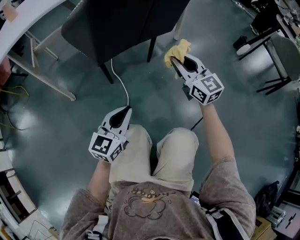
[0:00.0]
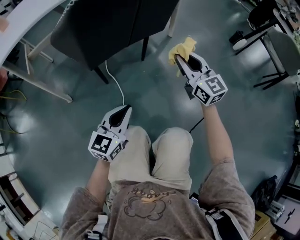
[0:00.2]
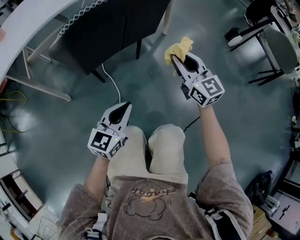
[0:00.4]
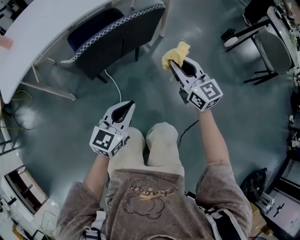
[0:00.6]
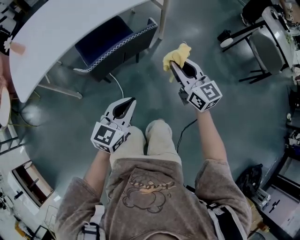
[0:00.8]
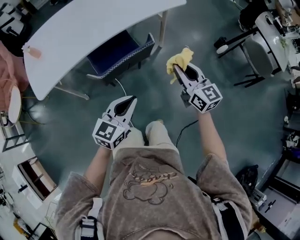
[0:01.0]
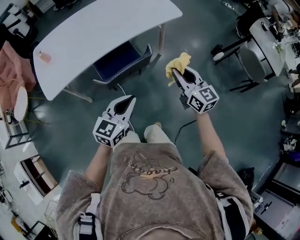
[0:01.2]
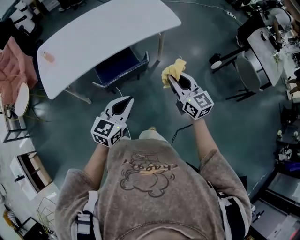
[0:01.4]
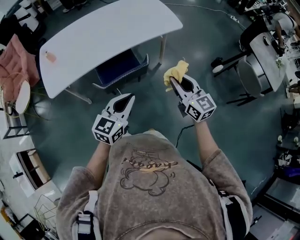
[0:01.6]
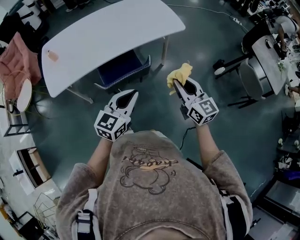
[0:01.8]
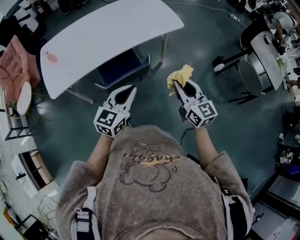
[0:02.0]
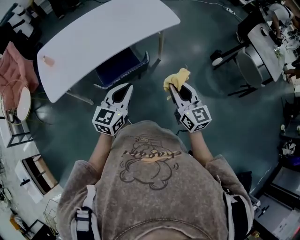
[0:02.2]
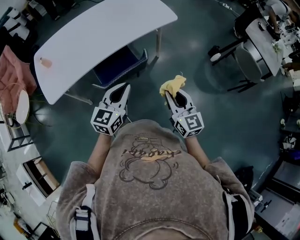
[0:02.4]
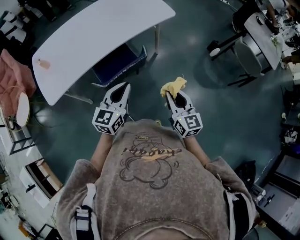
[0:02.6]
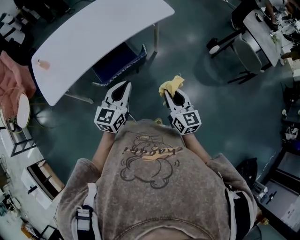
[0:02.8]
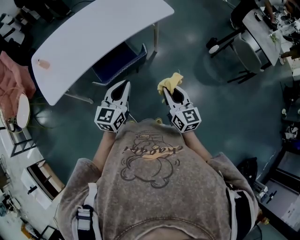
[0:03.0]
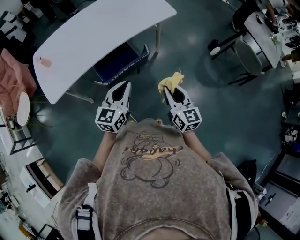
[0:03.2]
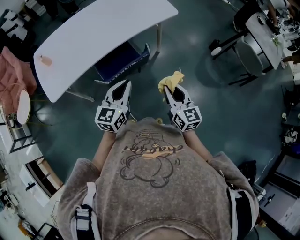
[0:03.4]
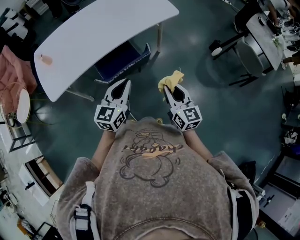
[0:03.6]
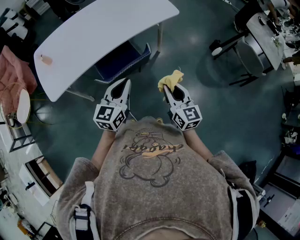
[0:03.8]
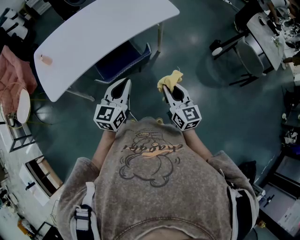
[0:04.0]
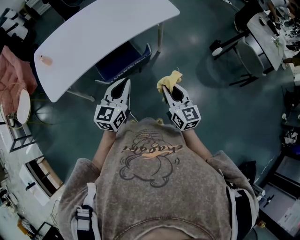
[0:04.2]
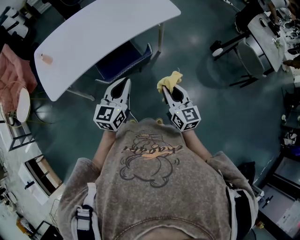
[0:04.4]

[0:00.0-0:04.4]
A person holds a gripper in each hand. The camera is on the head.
0:00.0 to 0:01.4: The two grippers go roughly 50 cm upward.
0:01.4 to 0:03.0: The left gripper goes about 5 cm forward; the right gripper goes roughly 10 cm backward and downward.
0:03.0 to 0:04.4: There are only small adjustments of the grippers.

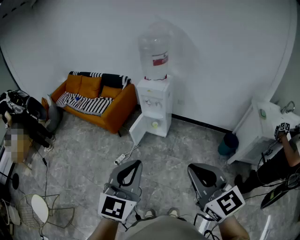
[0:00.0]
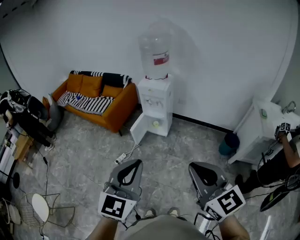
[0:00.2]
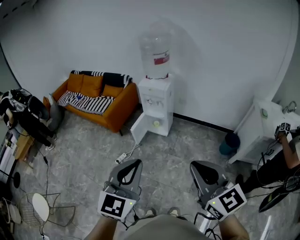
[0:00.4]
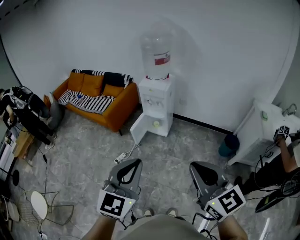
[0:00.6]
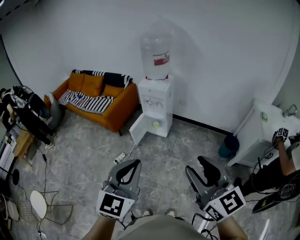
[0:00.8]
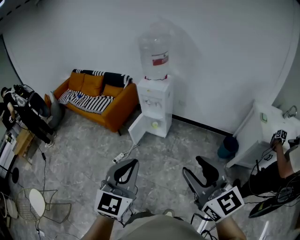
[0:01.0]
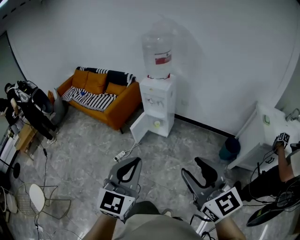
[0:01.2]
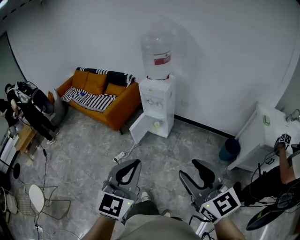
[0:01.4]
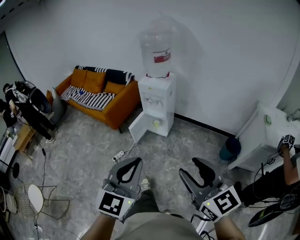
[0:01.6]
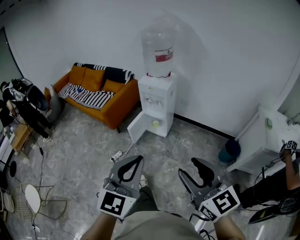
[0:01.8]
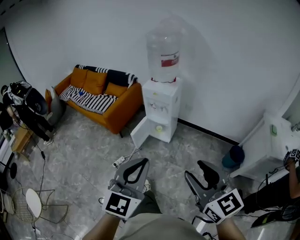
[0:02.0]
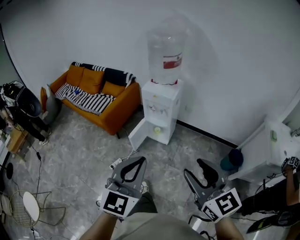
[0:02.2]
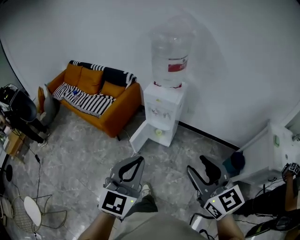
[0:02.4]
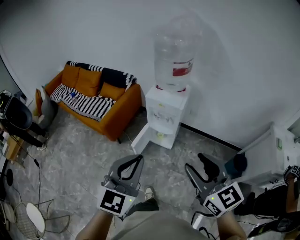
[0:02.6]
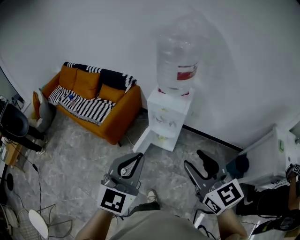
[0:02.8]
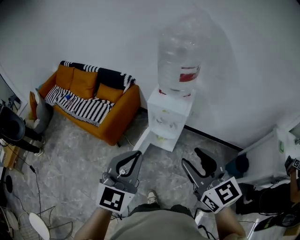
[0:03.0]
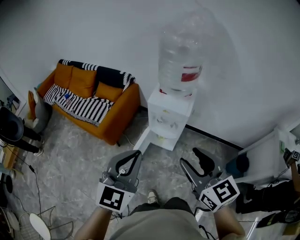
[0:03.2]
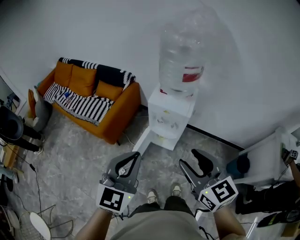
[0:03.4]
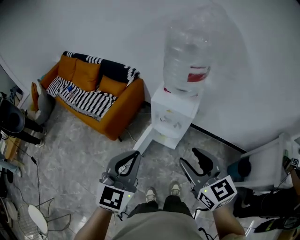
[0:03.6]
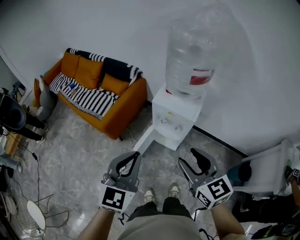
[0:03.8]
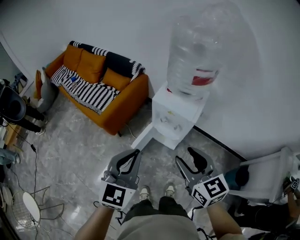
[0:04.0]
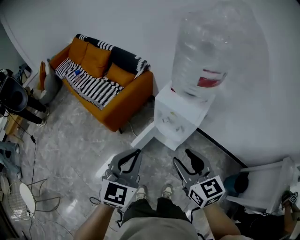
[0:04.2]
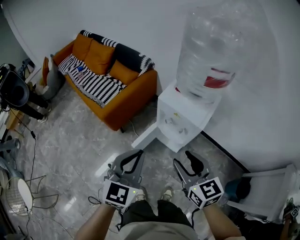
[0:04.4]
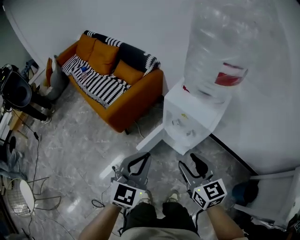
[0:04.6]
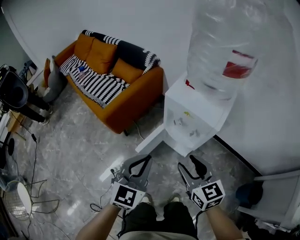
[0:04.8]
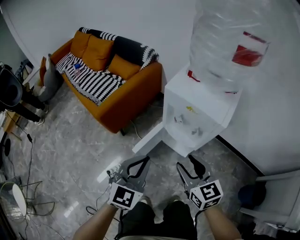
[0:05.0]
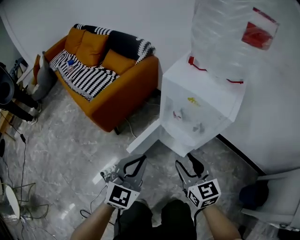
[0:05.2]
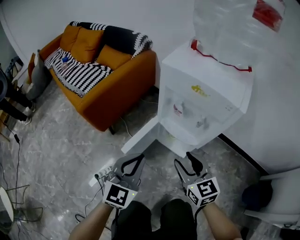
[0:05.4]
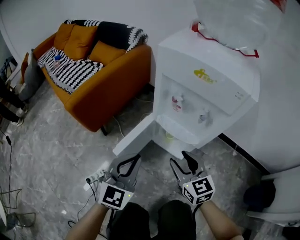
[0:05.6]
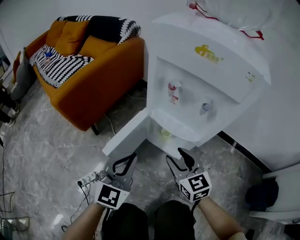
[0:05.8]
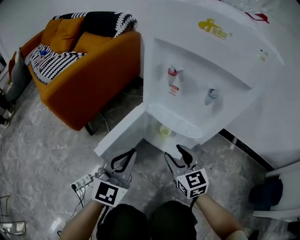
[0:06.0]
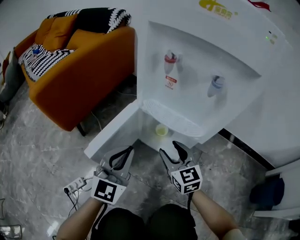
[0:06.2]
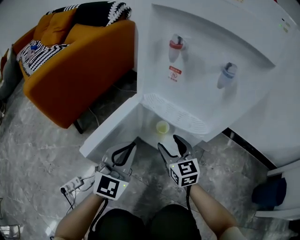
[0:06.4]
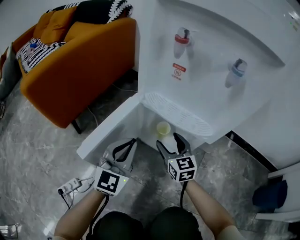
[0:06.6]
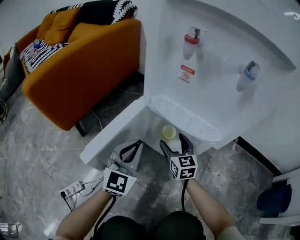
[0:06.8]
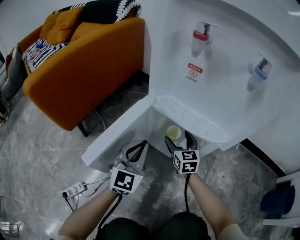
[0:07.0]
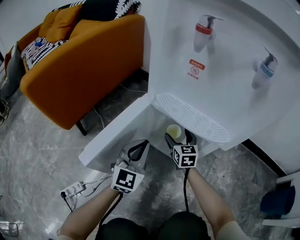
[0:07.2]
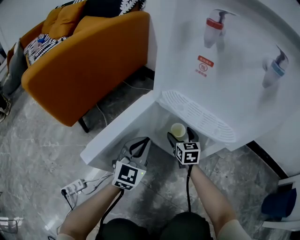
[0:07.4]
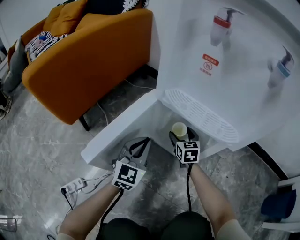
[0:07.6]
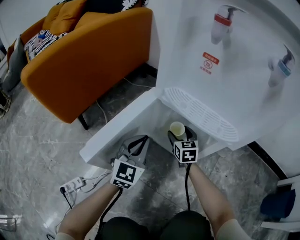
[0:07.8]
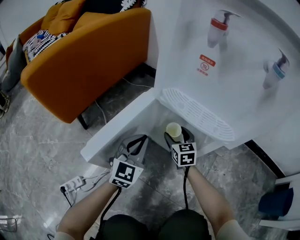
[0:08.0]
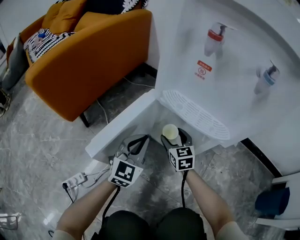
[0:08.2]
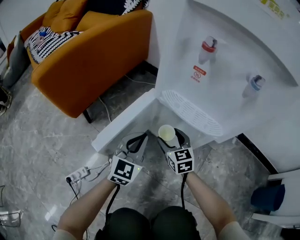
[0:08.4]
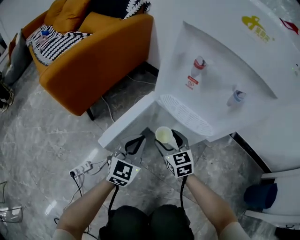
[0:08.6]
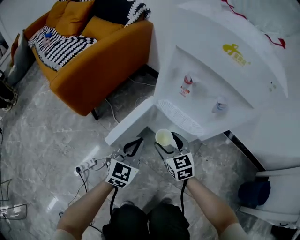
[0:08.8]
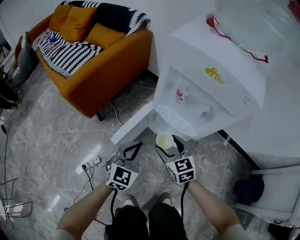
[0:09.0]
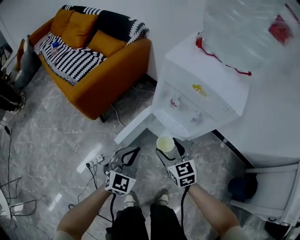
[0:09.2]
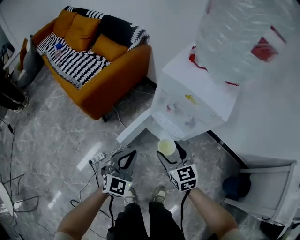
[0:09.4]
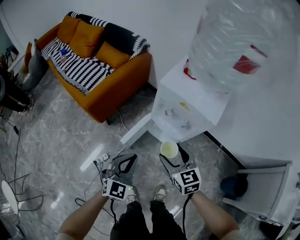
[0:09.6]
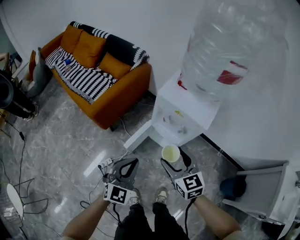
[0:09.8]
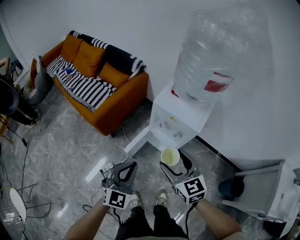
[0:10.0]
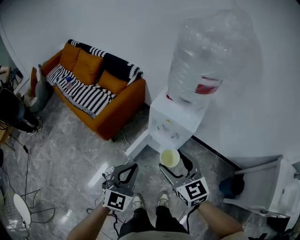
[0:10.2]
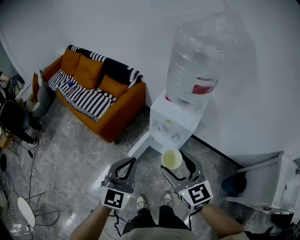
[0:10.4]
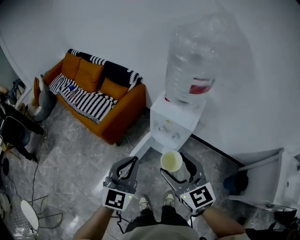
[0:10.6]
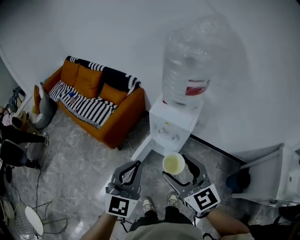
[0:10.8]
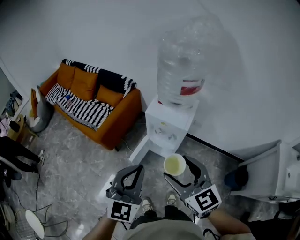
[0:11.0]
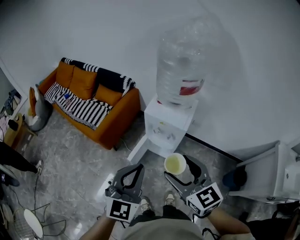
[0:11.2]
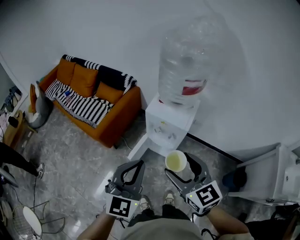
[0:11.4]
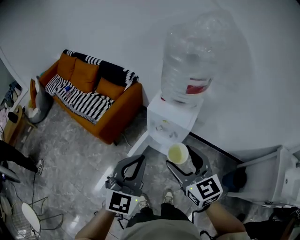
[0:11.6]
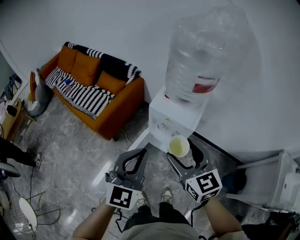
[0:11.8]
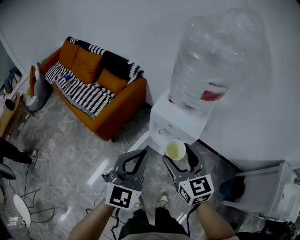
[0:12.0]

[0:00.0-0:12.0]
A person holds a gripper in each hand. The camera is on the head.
0:00.0 to 0:01.6: The grippers both shift to the right by about 5 cm. The right gripper opens its fingers.
0:01.6 to 0:03.0: Both grippers are carried forward, approximately 50 cm.
0:03.0 to 0:04.4: Both grippers move downward and forward, about 20 cm.
0:04.4 to 0:06.0: The two grippers go some 60 cm downward.
0:06.0 to 0:07.6: The two grippers go roughly 30 cm downward and forward. The right gripper opens its fingers.
0:07.6 to 0:09.0: The two grippers go about 35 cm upward and backward.
0:09.0 to 0:10.4: The grippers both shift upward by some 50 cm.
0:10.4 to 0:12.0: Both grippers travel together forward, some 10 cm.

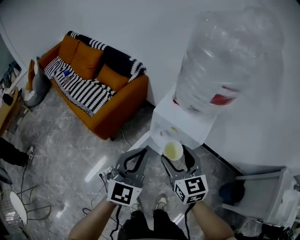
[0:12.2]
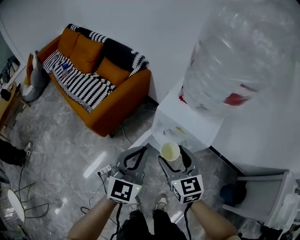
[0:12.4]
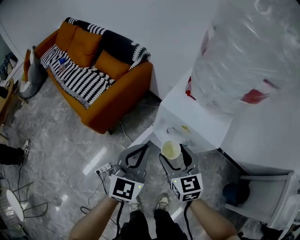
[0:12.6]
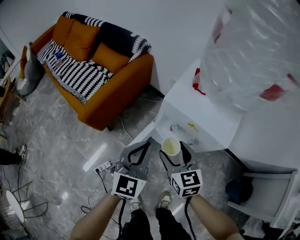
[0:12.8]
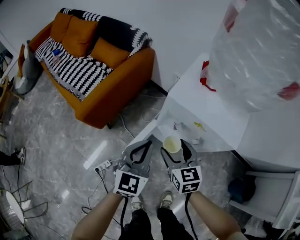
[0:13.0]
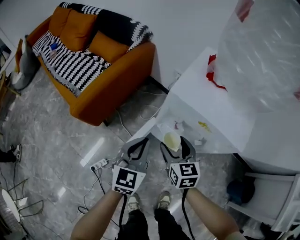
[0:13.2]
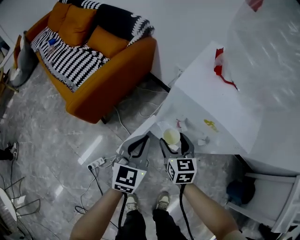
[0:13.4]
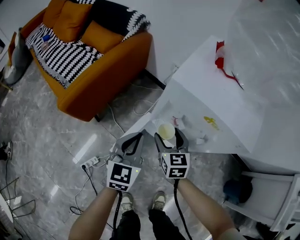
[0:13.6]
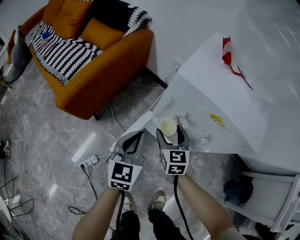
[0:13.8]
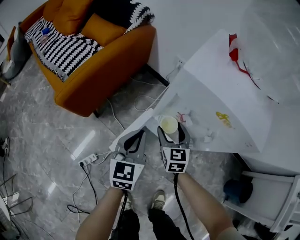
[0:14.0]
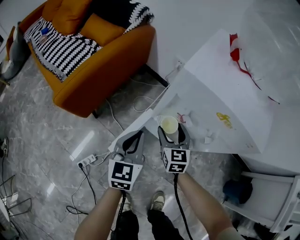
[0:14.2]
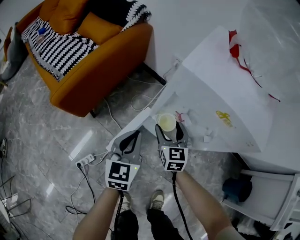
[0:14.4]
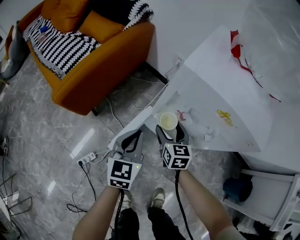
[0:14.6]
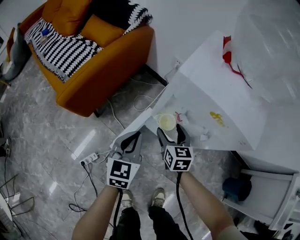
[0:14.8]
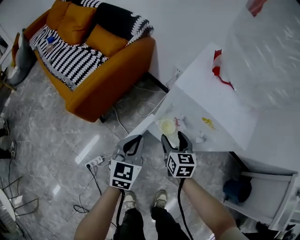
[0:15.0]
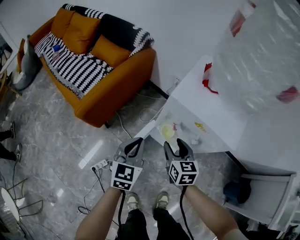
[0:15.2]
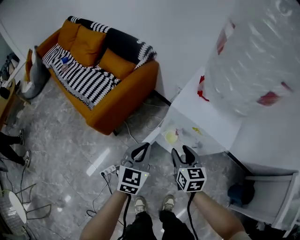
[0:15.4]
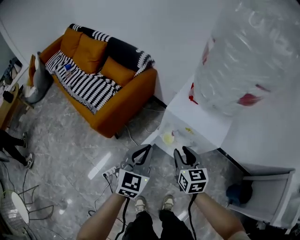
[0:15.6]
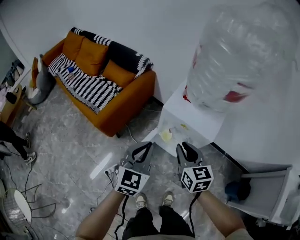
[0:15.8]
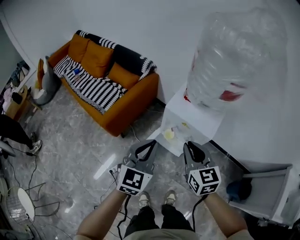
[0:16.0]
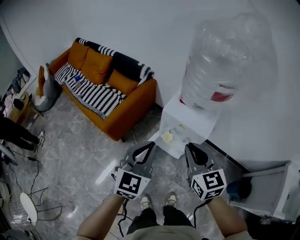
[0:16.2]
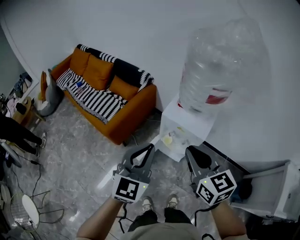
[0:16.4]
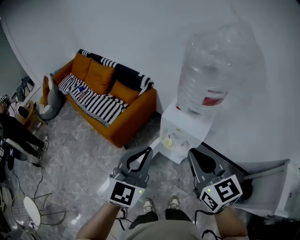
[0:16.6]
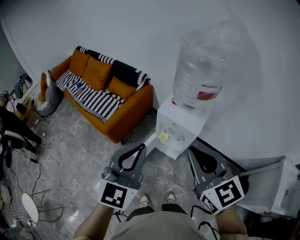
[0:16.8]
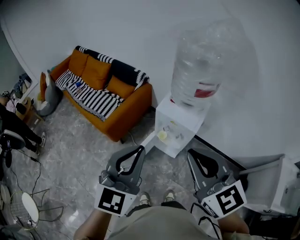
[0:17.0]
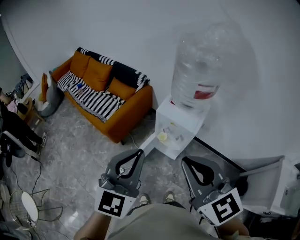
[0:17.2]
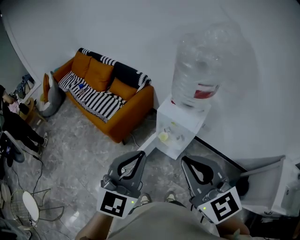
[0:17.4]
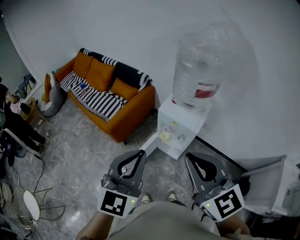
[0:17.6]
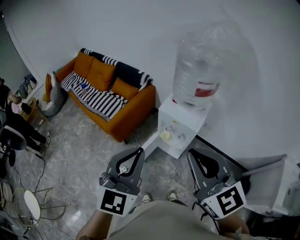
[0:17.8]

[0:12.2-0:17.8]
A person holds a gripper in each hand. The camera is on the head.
0:12.2 to 0:13.6: The grippers both shift downward by roughly 40 cm.
0:13.6 to 0:15.0: The right gripper goes downward and returns, roughly 5 cm each way.
0:15.0 to 0:16.4: Both grippers move upward, roughly 50 cm. The right gripper rotates some 20 degrees, and closes, while the left gripper swivels approximately 20 degrees.
0:16.4 to 0:17.8: The two grippers go roughly 15 cm upward and backward.

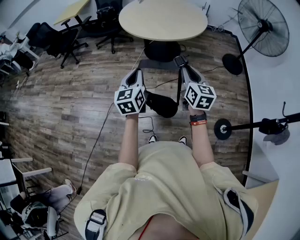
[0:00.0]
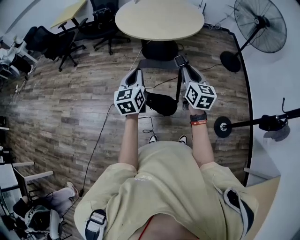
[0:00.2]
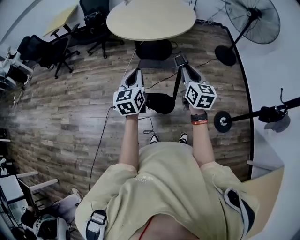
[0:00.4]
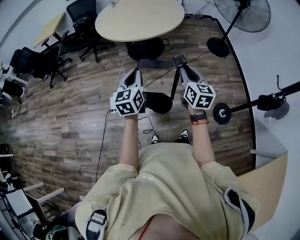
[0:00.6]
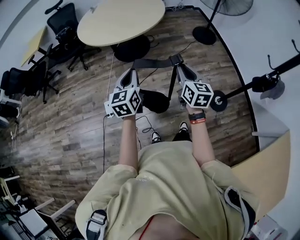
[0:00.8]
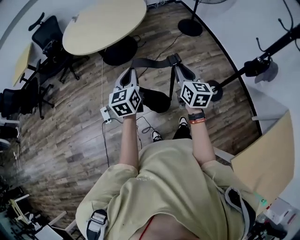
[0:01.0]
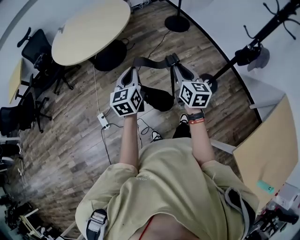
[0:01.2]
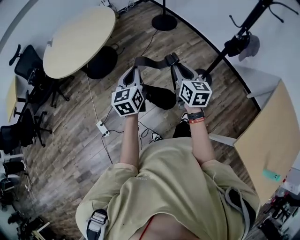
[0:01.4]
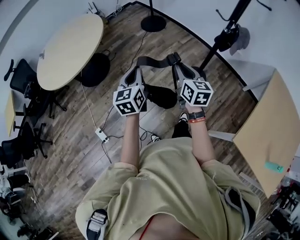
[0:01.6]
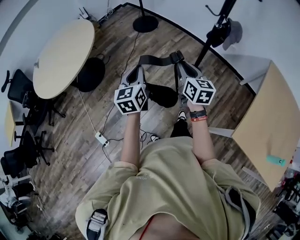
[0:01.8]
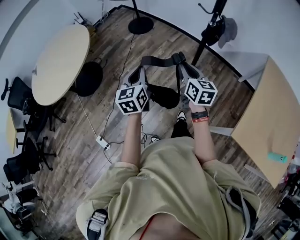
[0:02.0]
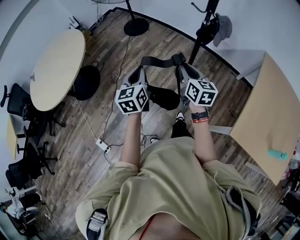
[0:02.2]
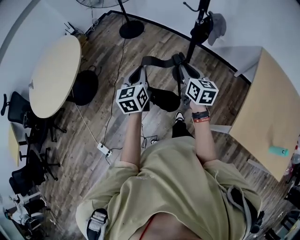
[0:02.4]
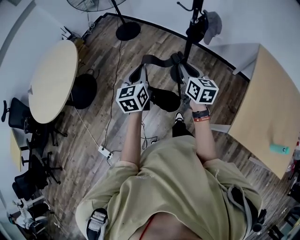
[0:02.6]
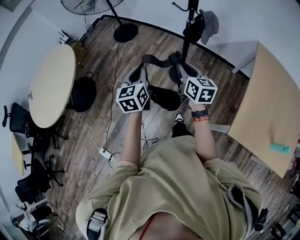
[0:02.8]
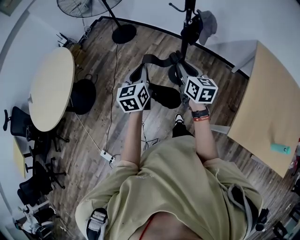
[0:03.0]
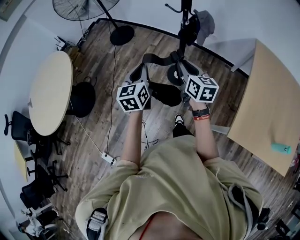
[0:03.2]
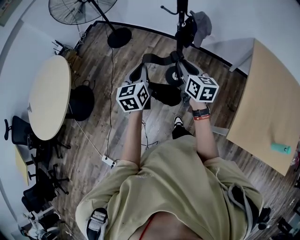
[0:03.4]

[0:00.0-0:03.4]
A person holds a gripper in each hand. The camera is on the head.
0:00.0 to 0:01.6: The left gripper ends up roughly 35 cm from where it was, and changes its angle by about 50 degrees. Meanwhile the right gripper shifts by some 30 cm, and turns by some 40 degrees.
0:01.6 to 0:03.4: The two grippers go some 30 cm to the right and forward. The left gripper changes its angle by some 20 degrees.
